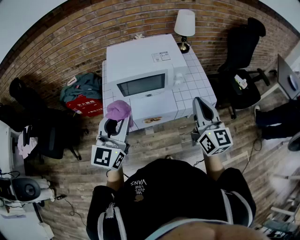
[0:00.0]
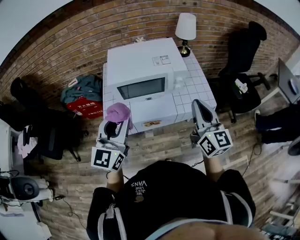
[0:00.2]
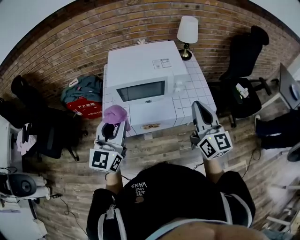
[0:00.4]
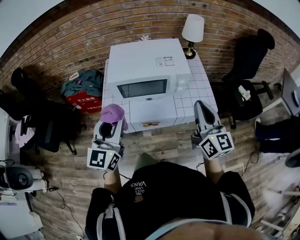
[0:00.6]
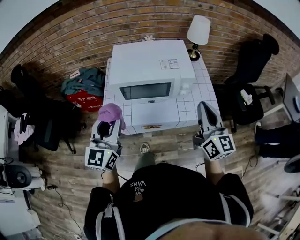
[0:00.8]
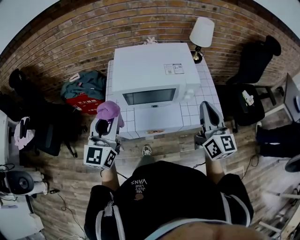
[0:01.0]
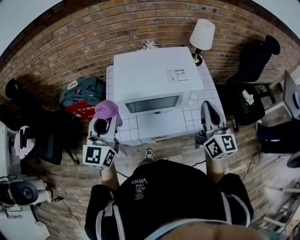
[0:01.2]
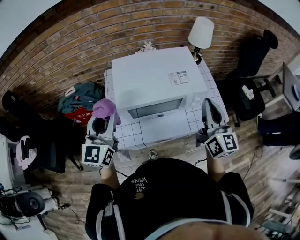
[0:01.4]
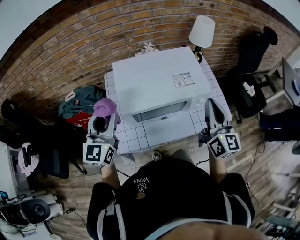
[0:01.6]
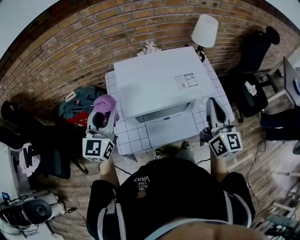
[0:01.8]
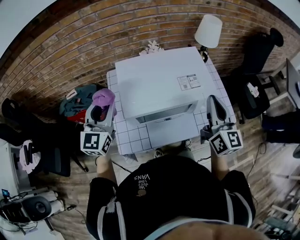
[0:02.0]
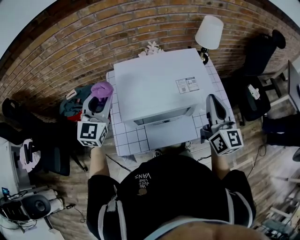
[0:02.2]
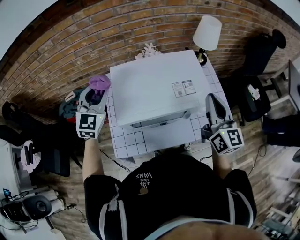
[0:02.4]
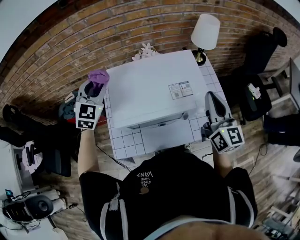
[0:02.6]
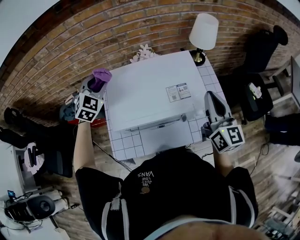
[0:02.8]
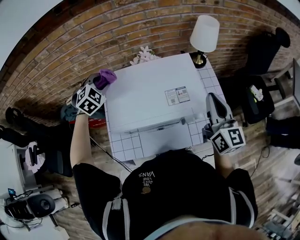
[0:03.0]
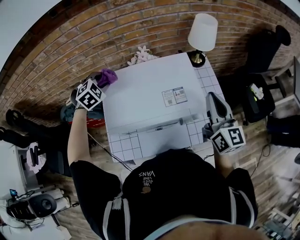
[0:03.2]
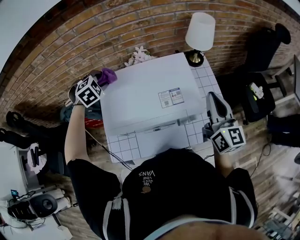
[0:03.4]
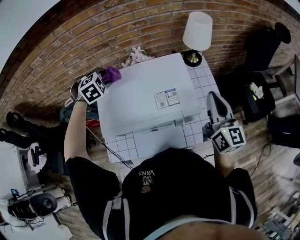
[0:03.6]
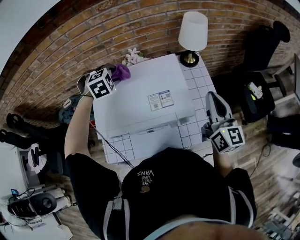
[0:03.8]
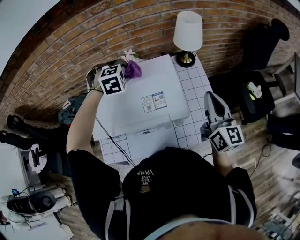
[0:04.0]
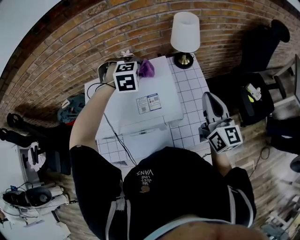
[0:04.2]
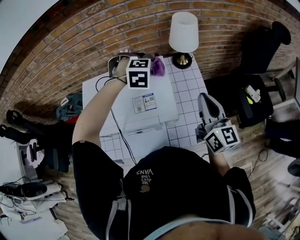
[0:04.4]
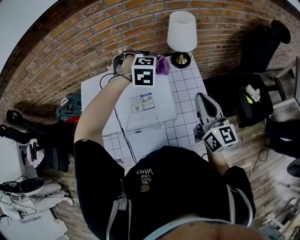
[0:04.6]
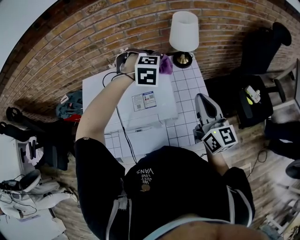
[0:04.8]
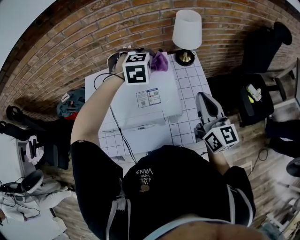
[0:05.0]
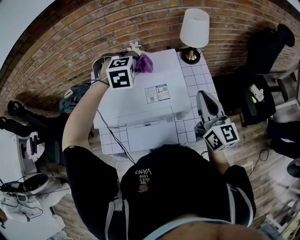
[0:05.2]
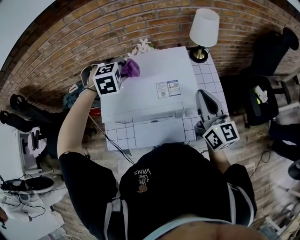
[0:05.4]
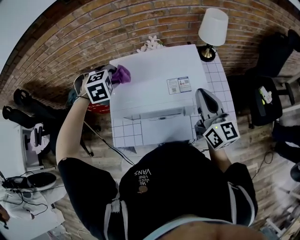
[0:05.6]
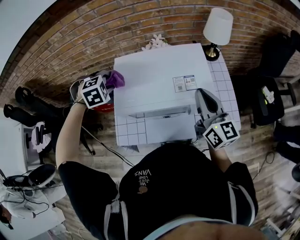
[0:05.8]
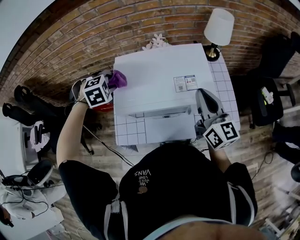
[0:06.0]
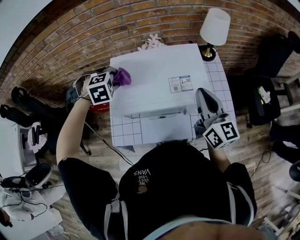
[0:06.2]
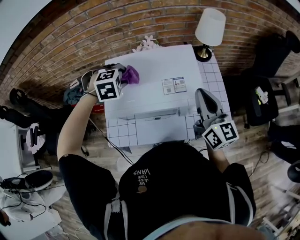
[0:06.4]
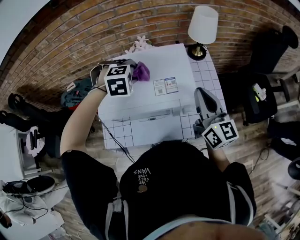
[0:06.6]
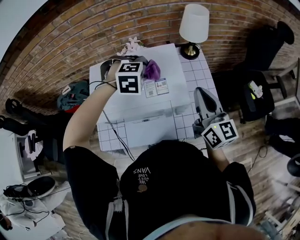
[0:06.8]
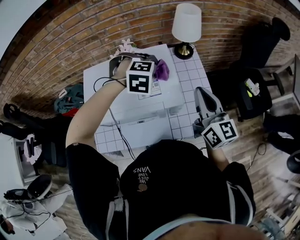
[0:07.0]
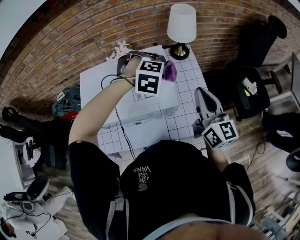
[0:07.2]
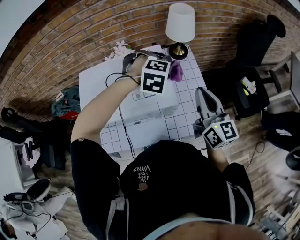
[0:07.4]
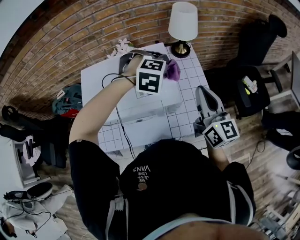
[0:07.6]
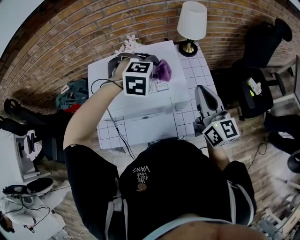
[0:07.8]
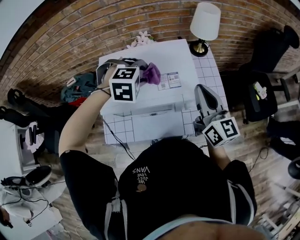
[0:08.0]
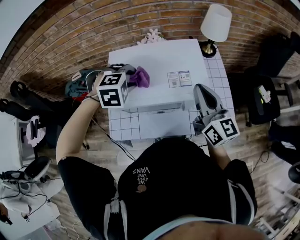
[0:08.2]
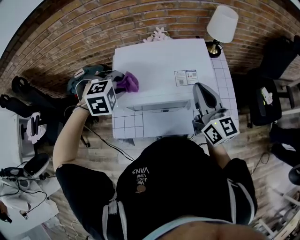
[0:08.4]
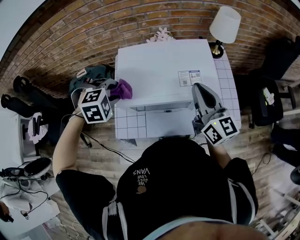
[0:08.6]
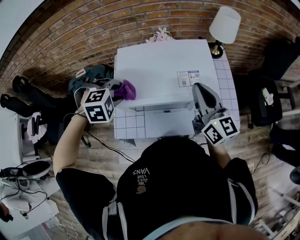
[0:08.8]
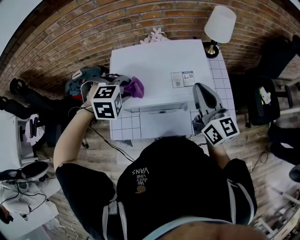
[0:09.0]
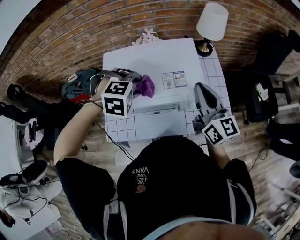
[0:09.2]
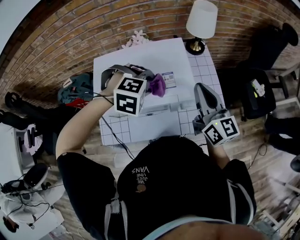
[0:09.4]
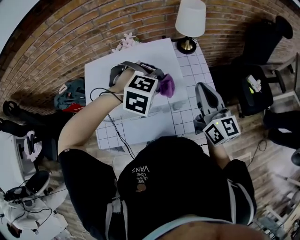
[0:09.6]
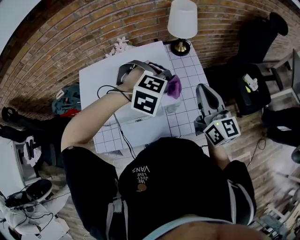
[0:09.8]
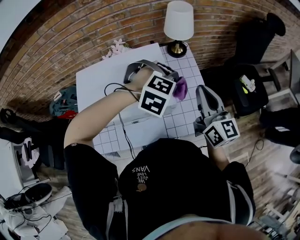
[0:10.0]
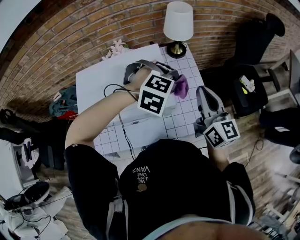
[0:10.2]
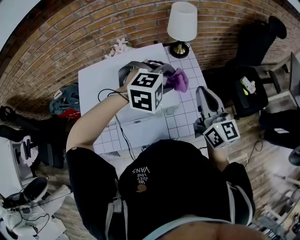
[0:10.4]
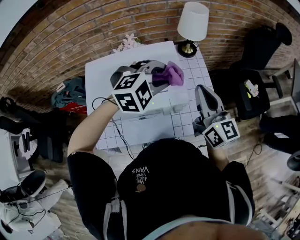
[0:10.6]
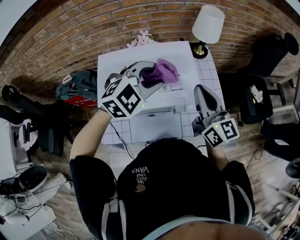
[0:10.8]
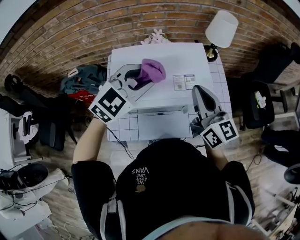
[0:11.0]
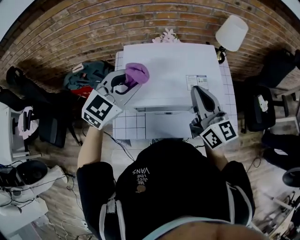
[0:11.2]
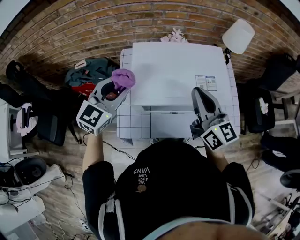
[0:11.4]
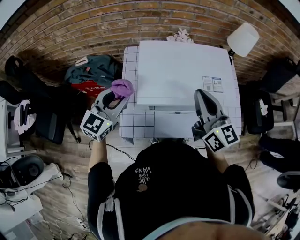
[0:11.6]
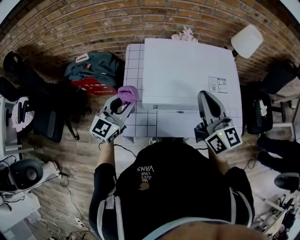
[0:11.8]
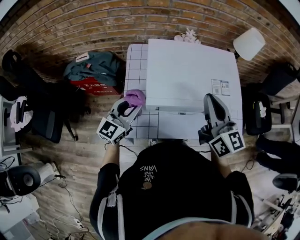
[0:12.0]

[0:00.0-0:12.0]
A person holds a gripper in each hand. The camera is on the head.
0:00.0 to 0:01.6: The right gripper travels forward by approximately 15 cm. Meanwhile the left gripper is displaced forward and to the left by roughly 25 cm.
0:01.6 to 0:03.0: The left gripper shifts some 25 cm forward, and tips its fingers downward by some 50 degrees. Meanwhile the right gripper is displaced forward by roughly 10 cm.
0:03.0 to 0:04.4: The right gripper shifts about 10 cm to the right, while the left gripper shifts about 35 cm to the right, and swivels approximately 40 degrees.
0:04.4 to 0:06.0: The left gripper goes some 35 cm to the left, and changes its angle by some 20 degrees; the right gripper is displaced to the left by about 20 cm.
0:06.0 to 0:07.6: The left gripper travels to the right by some 40 cm, and swivels approximately 30 degrees, while the right gripper travels to the right by approximately 15 cm.
0:07.6 to 0:09.0: The left gripper travels to the left and backward by some 30 cm, while the right gripper heads to the left, covering approximately 15 cm.
0:09.0 to 0:10.4: The left gripper shifts about 30 cm to the right and forward, and swivels about 30 degrees, while the right gripper travels to the right by roughly 15 cm.
0:10.4 to 0:12.0: Both grippers travel together to the left, approximately 35 cm. The left gripper tips its fingers upward by some 50 degrees.

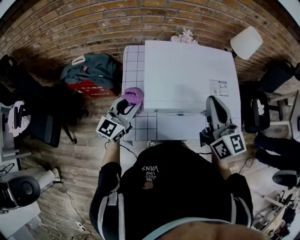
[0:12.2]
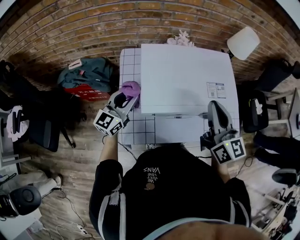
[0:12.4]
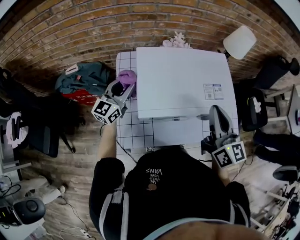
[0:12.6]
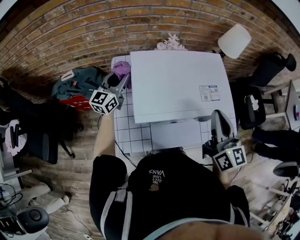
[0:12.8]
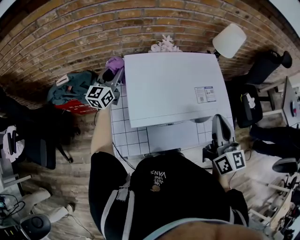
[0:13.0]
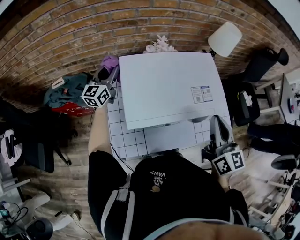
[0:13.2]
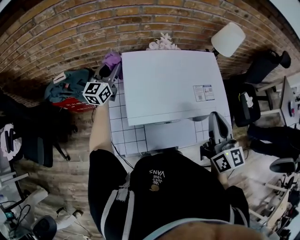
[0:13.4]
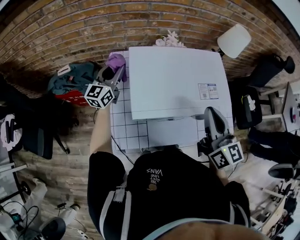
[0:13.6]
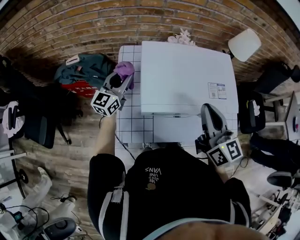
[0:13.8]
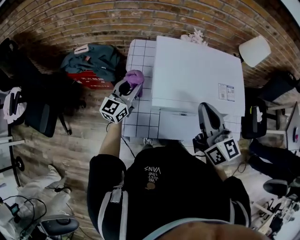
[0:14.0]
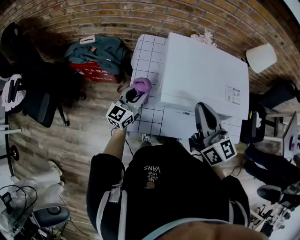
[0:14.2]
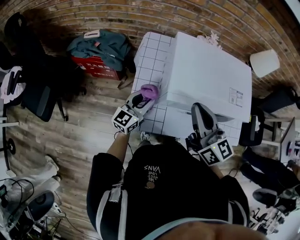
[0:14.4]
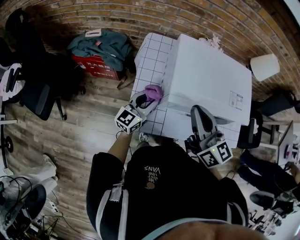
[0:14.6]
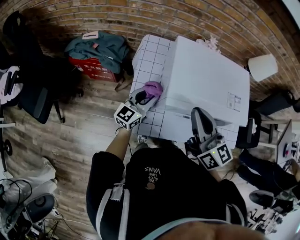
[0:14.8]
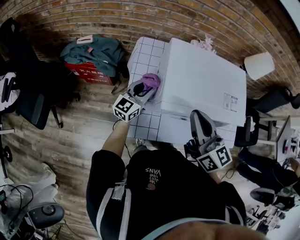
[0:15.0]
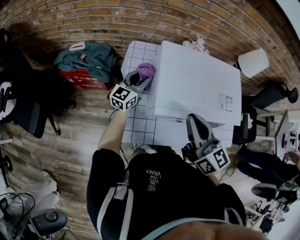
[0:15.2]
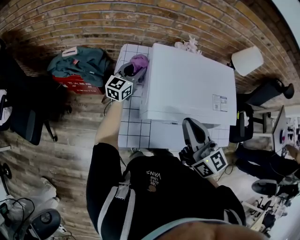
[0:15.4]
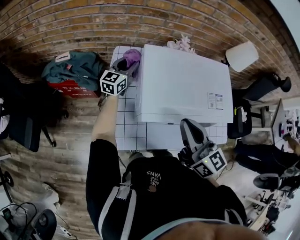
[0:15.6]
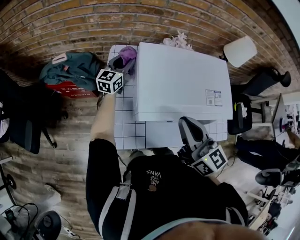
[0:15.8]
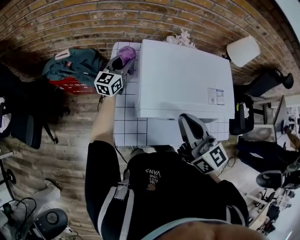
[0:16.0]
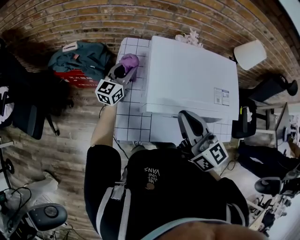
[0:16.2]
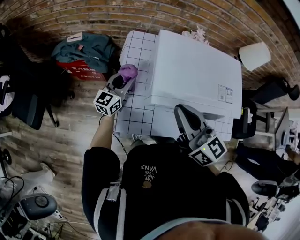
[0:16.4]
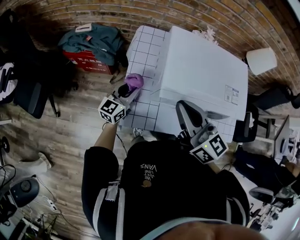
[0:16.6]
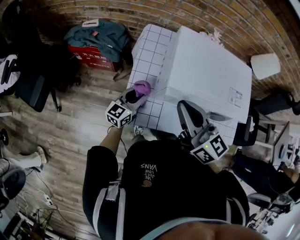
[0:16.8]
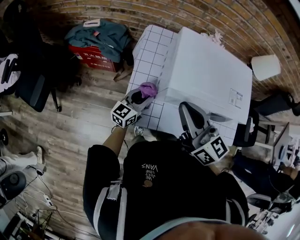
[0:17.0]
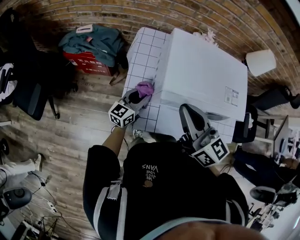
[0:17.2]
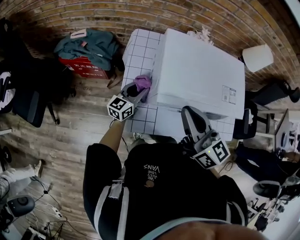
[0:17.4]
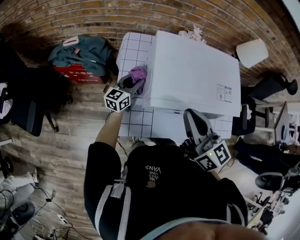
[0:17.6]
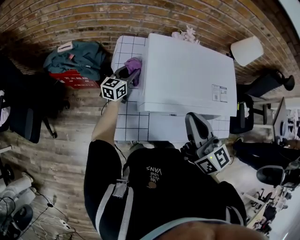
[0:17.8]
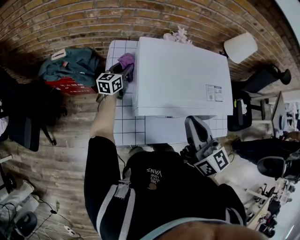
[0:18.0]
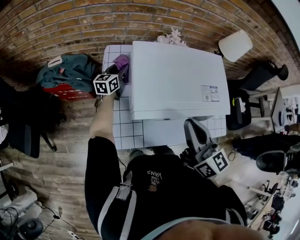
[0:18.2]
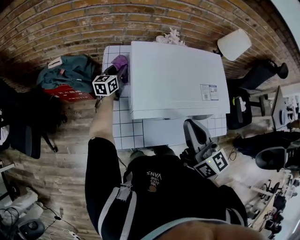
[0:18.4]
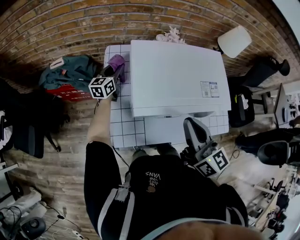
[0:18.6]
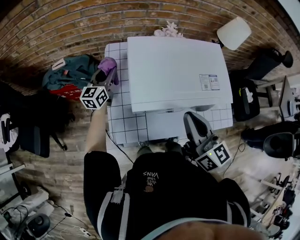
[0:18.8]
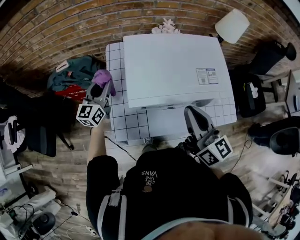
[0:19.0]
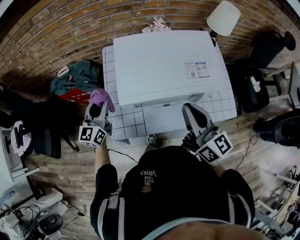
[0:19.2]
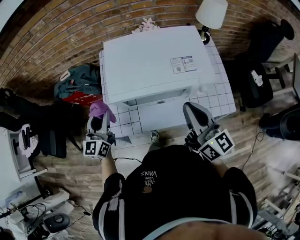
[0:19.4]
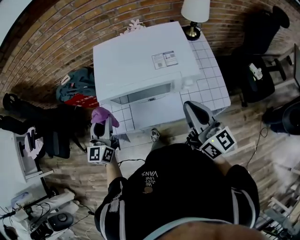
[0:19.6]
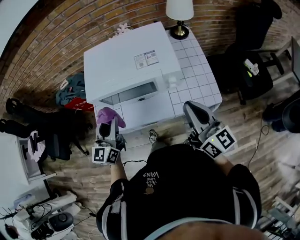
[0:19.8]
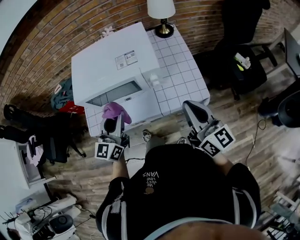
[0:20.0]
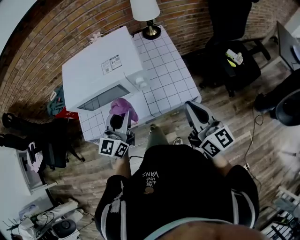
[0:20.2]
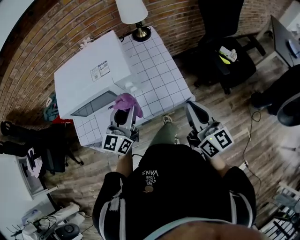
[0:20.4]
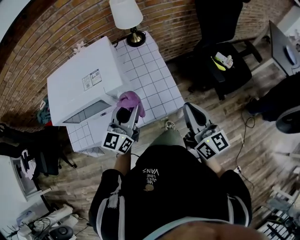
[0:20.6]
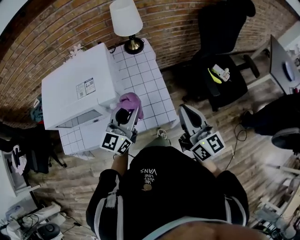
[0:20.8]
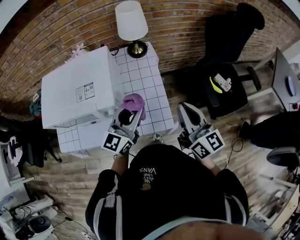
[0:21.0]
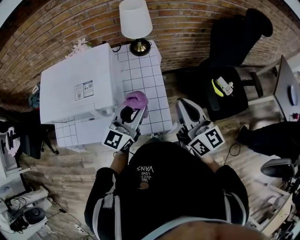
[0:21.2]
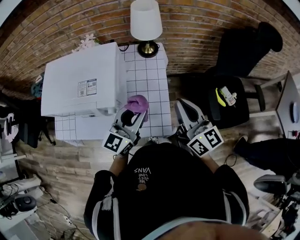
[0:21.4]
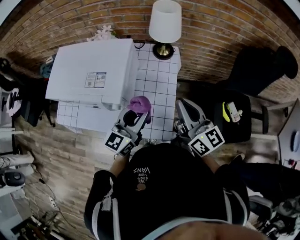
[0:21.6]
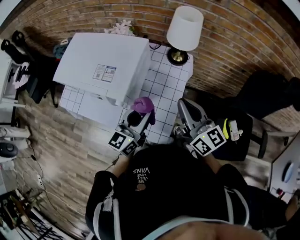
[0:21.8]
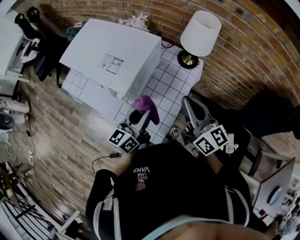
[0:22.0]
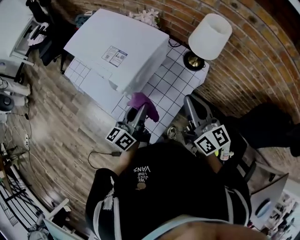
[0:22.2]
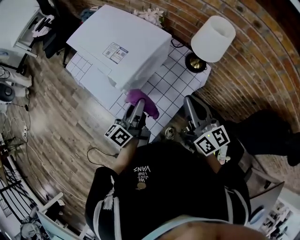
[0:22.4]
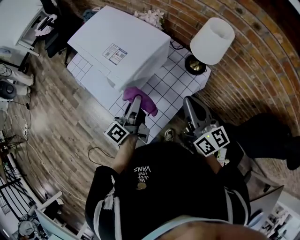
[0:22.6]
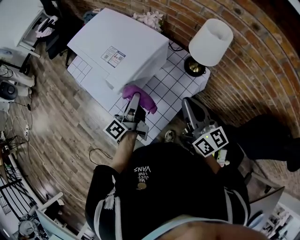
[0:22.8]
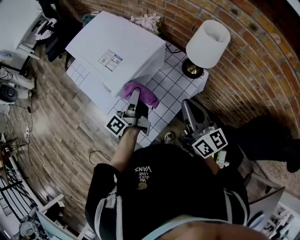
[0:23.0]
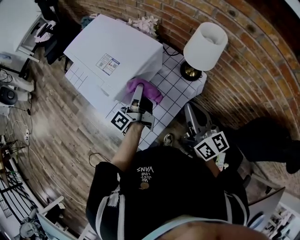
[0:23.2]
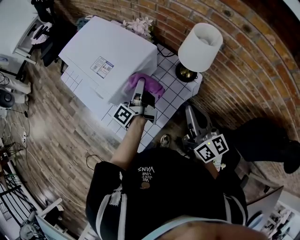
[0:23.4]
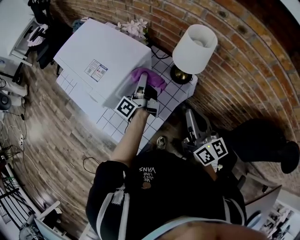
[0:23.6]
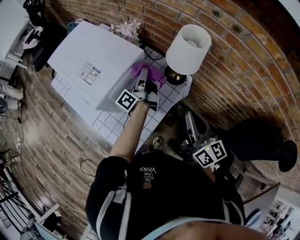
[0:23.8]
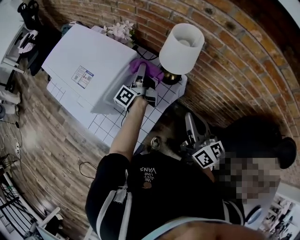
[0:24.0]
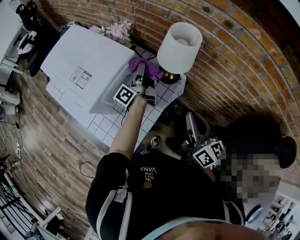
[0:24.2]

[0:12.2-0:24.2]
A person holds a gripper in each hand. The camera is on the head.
0:12.2 to 0:13.8: The right gripper reaches some 10 cm to the right, then returns. The left gripper heads forward and to the left, covering about 15 cm.
0:13.8 to 0:15.2: The right gripper goes approximately 10 cm to the left; the left gripper is displaced downward by some 5 cm, and moves roughly 15 cm backward and comes back.
0:15.2 to 0:16.6: The right gripper changes place by approximately 5 cm; the left gripper heads backward, covering about 10 cm.
0:16.6 to 0:18.2: The right gripper shifts roughly 10 cm to the right, and rotates some 20 degrees. Meanwhile the left gripper is displaced forward by roughly 20 cm.
0:18.2 to 0:19.8: The right gripper goes some 30 cm to the right and backward, while the left gripper is displaced backward, upward and to the right by roughly 50 cm, and rotates some 20 degrees.
0:19.8 to 0:21.2: The left gripper travels to the right and forward by some 40 cm. Meanwhile the right gripper travels to the right and forward by some 30 cm.
0:21.2 to 0:22.6: The right gripper moves roughly 15 cm, and rotates approximately 50 degrees; the left gripper ends up roughly 10 cm from where it was, and turns by approximately 80 degrees.
0:22.6 to 0:24.2: The left gripper heads forward and to the right, covering approximately 25 cm. Meanwhile the right gripper is displaced to the right by roughly 15 cm.
